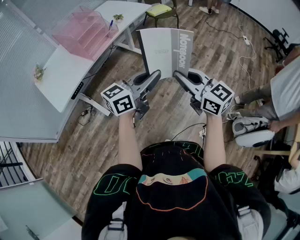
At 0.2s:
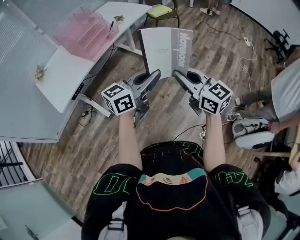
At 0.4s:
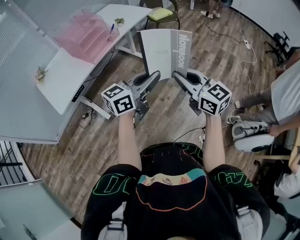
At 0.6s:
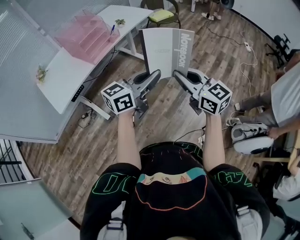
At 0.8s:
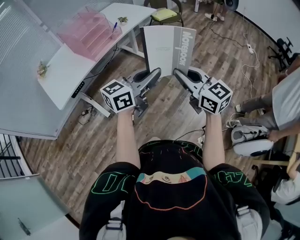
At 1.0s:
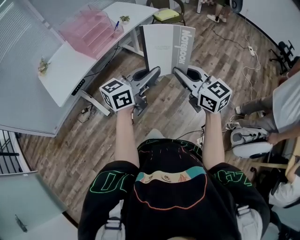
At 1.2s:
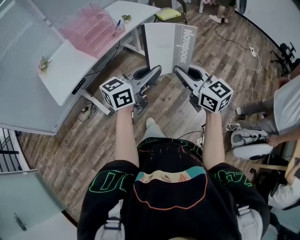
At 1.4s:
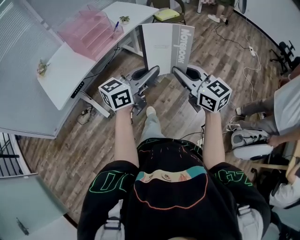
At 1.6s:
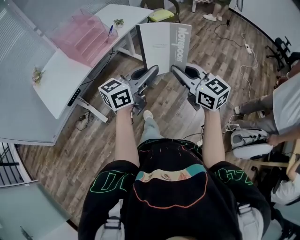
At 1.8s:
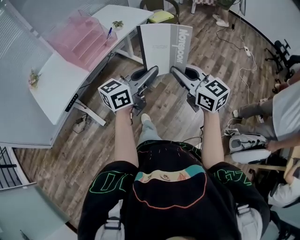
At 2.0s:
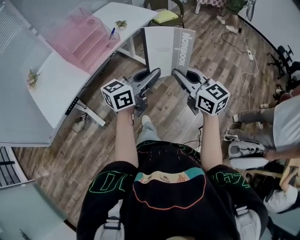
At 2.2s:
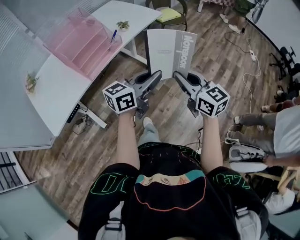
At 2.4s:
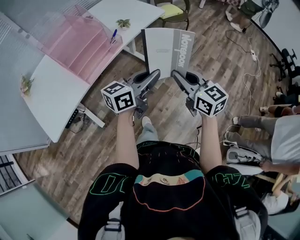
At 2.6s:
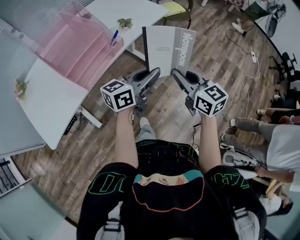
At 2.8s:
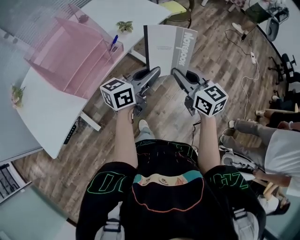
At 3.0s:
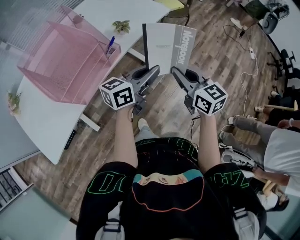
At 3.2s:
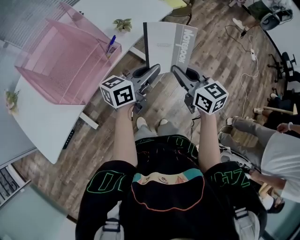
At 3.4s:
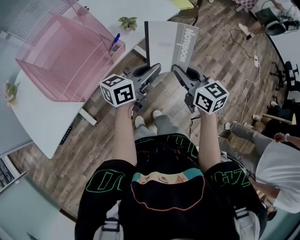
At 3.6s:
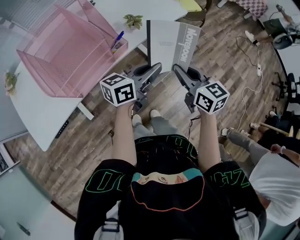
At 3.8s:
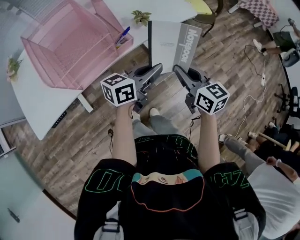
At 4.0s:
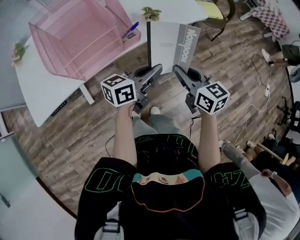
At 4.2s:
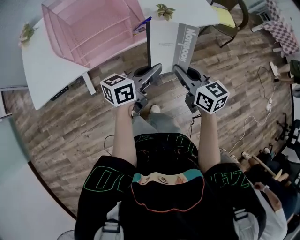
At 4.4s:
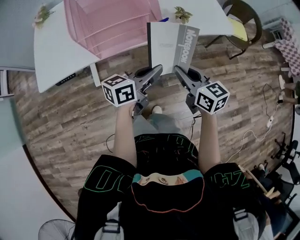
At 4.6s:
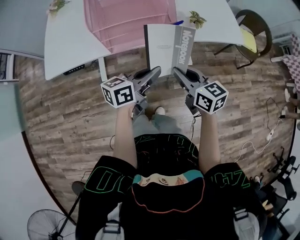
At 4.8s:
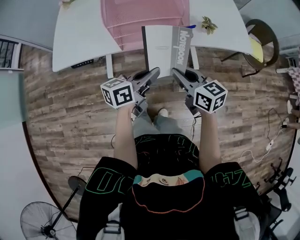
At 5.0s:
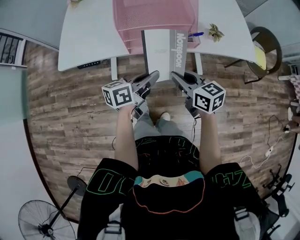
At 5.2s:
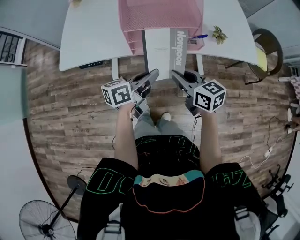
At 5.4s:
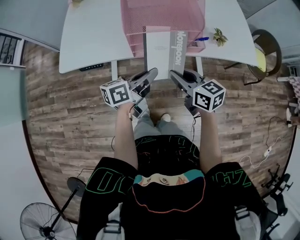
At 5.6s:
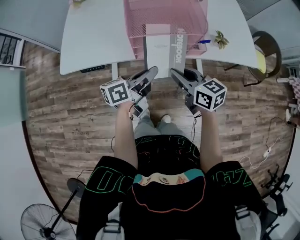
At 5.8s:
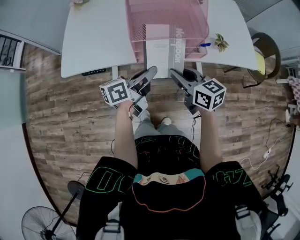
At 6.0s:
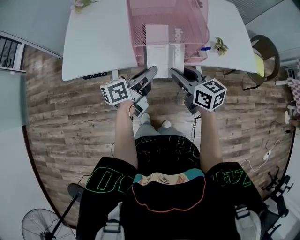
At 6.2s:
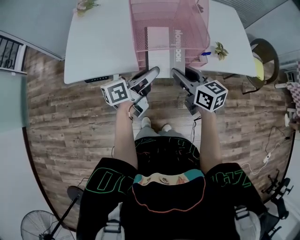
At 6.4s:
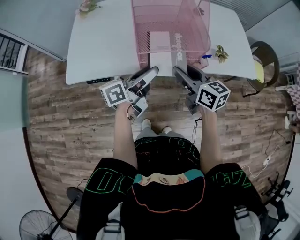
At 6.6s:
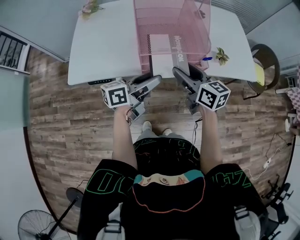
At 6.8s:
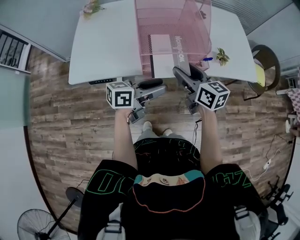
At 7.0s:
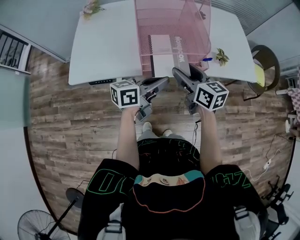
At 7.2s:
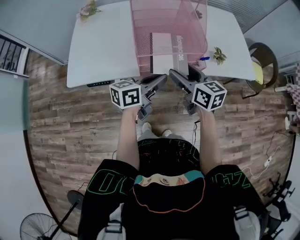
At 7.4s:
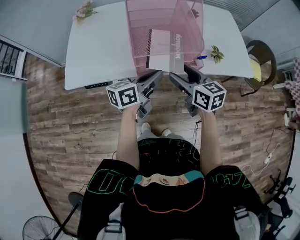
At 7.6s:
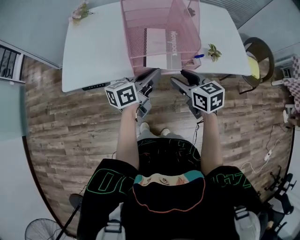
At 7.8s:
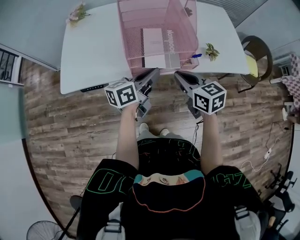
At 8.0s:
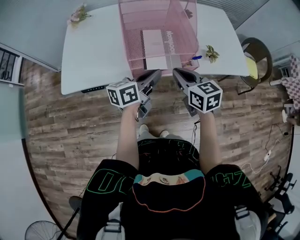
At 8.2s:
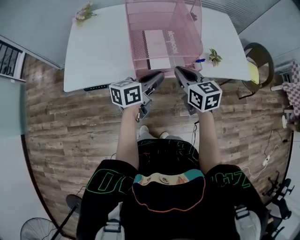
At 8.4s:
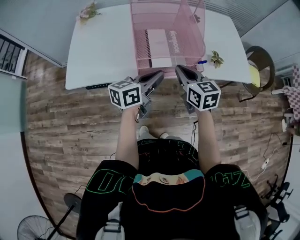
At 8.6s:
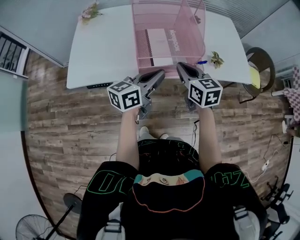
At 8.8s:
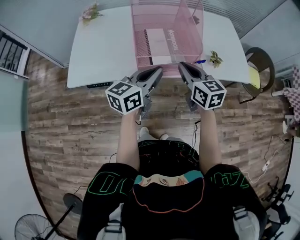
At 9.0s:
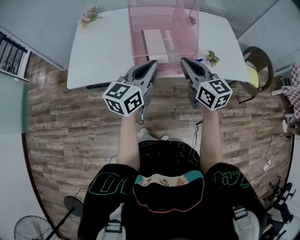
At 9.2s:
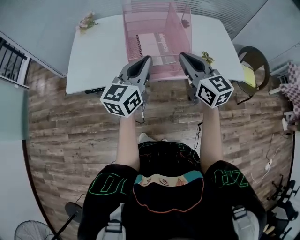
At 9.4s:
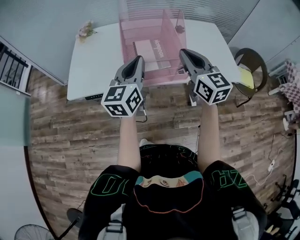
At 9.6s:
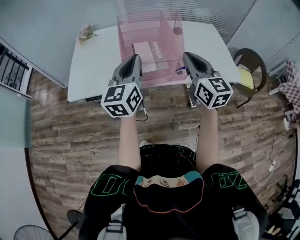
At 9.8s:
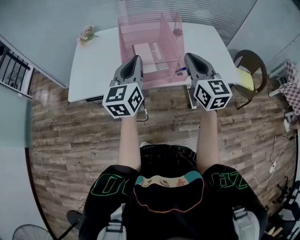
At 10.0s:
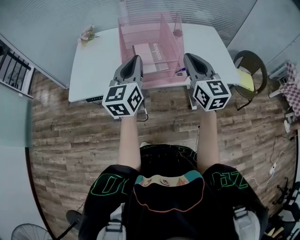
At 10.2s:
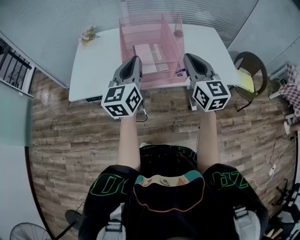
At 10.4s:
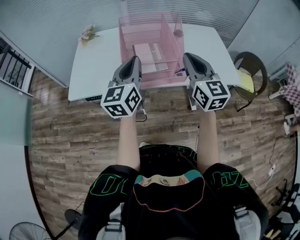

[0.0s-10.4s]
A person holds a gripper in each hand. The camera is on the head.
0.0s to 1.4s: The grippers make only small movements.
1.4s to 3.0s: Both grippers move forward, about 40 cm.
3.0s to 4.4s: The right gripper changes place by approximately 10 cm, and rotates approximately 40 degrees. The left gripper changes place by about 10 cm, and swivels approximately 40 degrees.
4.4s to 6.0s: Both grippers travel together to the left and forward, some 20 cm. The left gripper turns by about 20 degrees.
6.0s to 7.4s: The right gripper opens its fingers. The left gripper opens and closes again.
7.4s to 9.0s: Both grippers travel together upward, some 10 cm. The right gripper closes; the left gripper rotates approximately 30 degrees.
9.0s to 10.4s: The left gripper is displaced upward by about 5 cm, and rotates approximately 20 degrees, while the right gripper moves upward and to the right, roughly 10 cm.

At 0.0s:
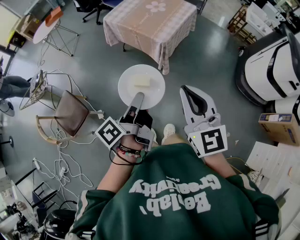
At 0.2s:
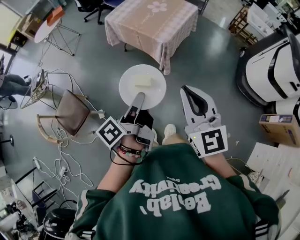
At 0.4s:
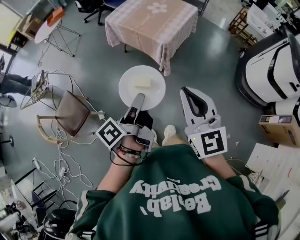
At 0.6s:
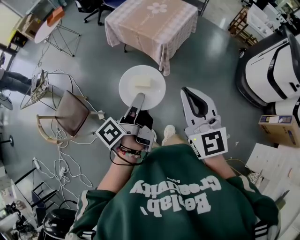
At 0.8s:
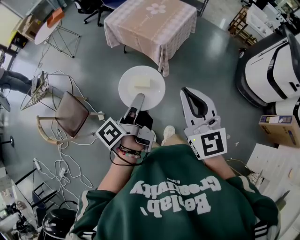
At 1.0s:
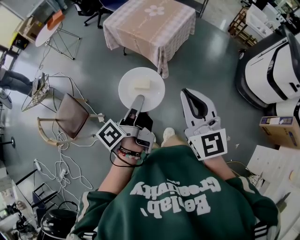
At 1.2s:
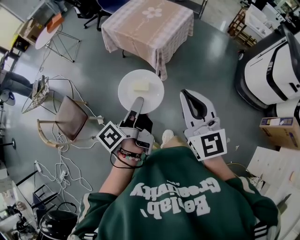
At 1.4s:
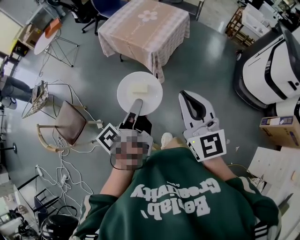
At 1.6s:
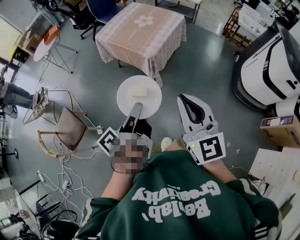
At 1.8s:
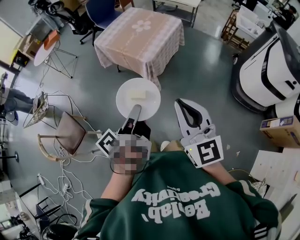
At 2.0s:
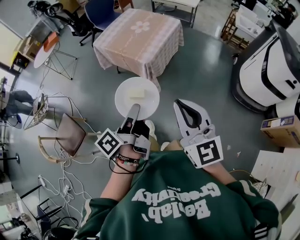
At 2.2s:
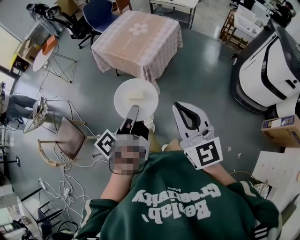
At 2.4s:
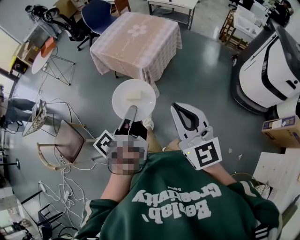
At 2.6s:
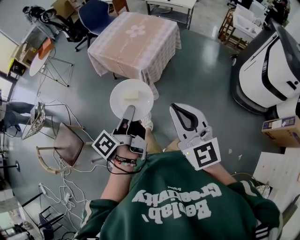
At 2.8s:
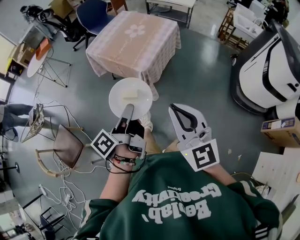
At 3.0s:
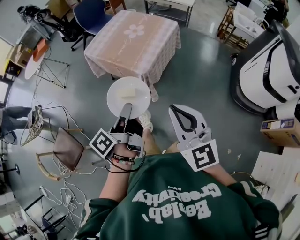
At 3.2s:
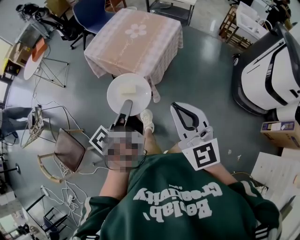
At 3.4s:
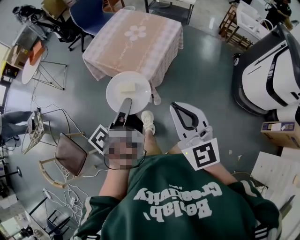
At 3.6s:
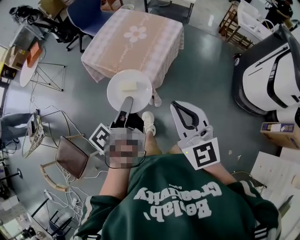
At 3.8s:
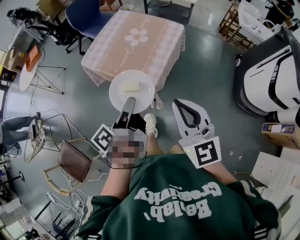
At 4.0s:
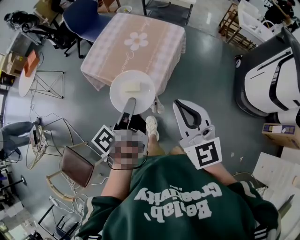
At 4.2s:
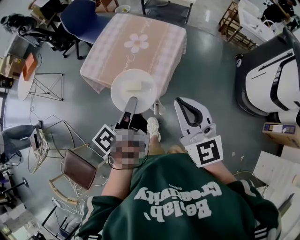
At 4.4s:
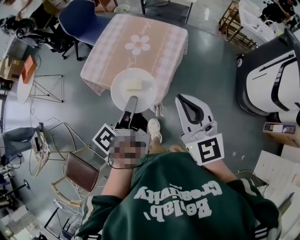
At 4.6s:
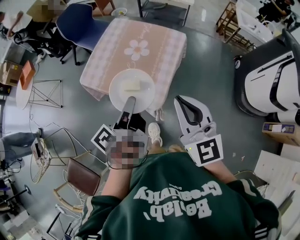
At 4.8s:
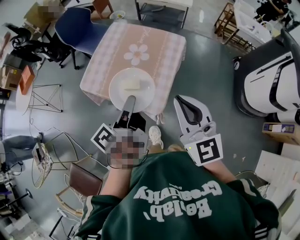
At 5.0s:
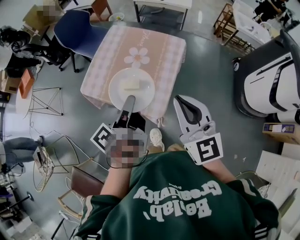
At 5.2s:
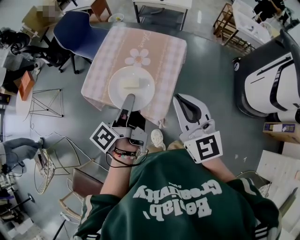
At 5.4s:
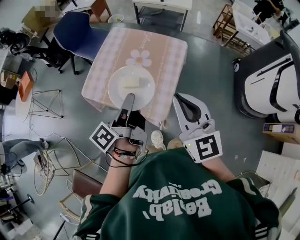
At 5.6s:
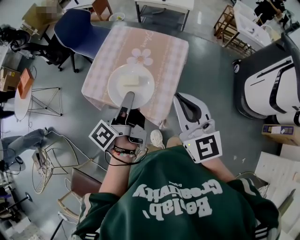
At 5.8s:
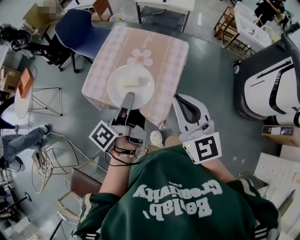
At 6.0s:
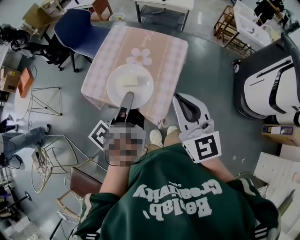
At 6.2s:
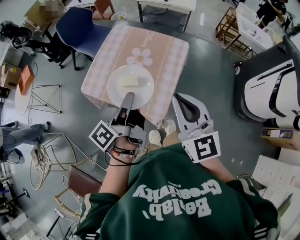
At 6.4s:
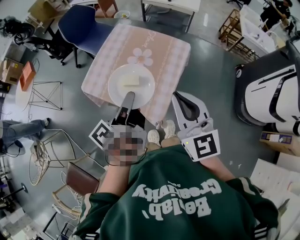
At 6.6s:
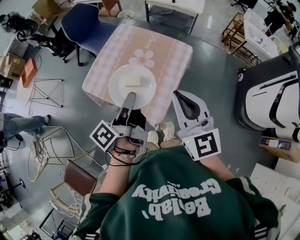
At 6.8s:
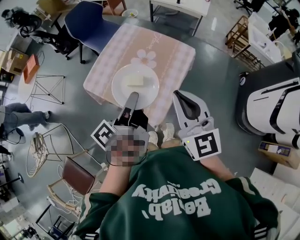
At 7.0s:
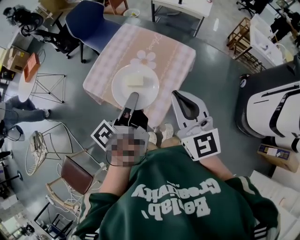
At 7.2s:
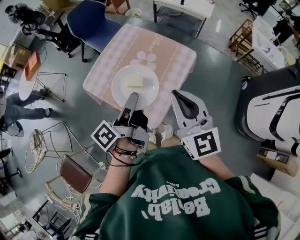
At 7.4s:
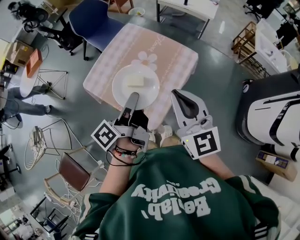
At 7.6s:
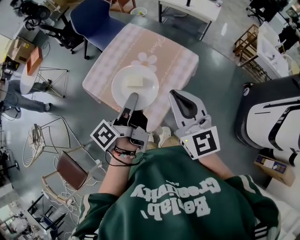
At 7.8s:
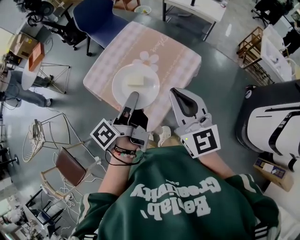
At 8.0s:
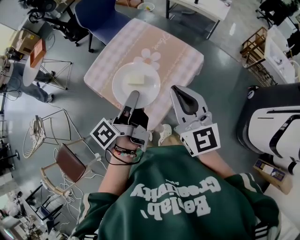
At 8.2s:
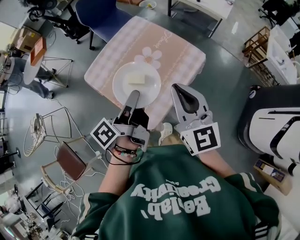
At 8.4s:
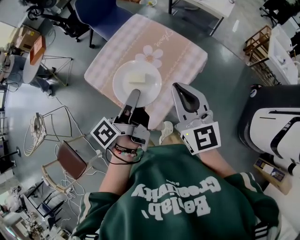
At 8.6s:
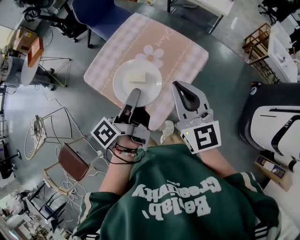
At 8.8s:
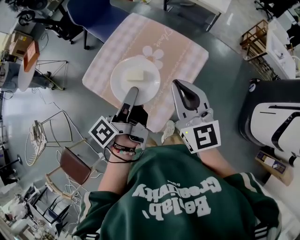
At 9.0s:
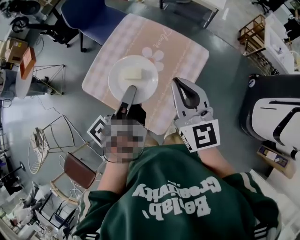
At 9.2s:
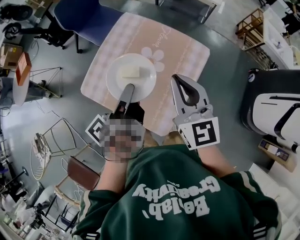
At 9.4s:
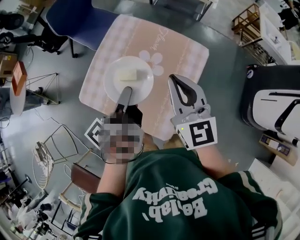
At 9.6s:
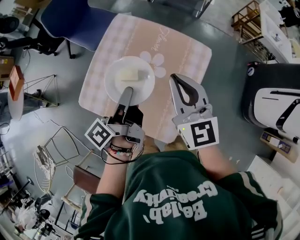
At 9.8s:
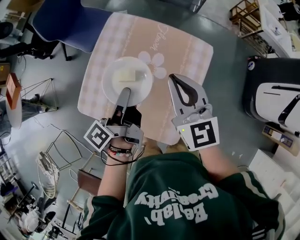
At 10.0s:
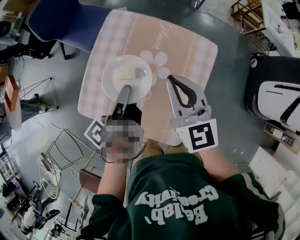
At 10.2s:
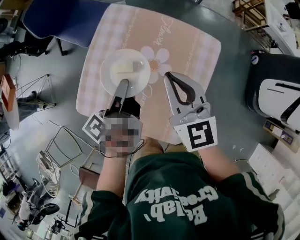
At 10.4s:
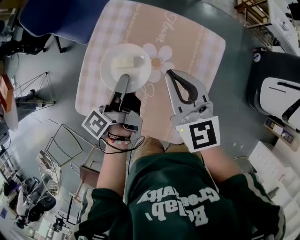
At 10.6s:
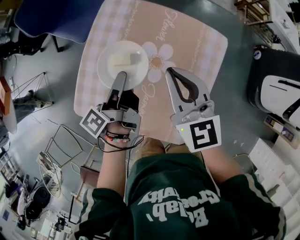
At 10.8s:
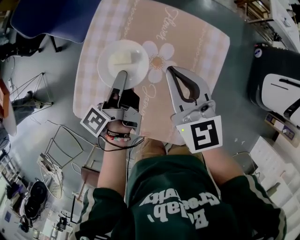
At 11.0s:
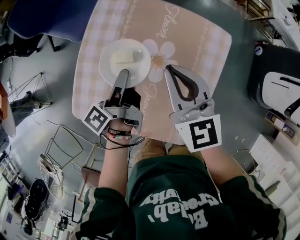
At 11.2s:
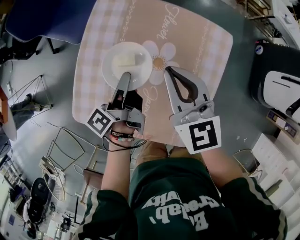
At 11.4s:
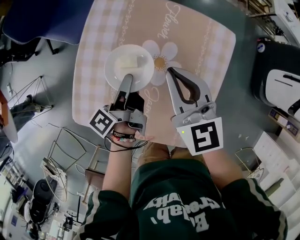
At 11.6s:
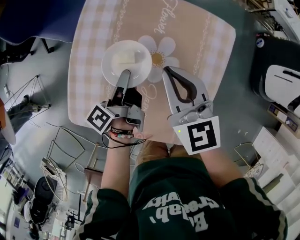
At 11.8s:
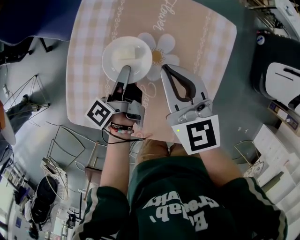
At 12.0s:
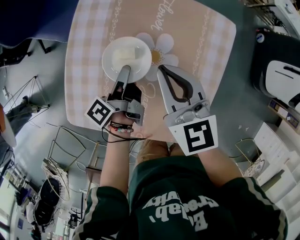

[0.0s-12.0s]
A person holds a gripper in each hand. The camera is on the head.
0.0s to 1.6s: The right gripper changes place by approximately 10 cm.
1.6s to 3.0s: The right gripper ends up about 10 cm from where it was.
3.0s to 4.4s: The right gripper shifts by some 30 cm.
4.4s to 6.0s: The right gripper moves roughly 10 cm.
6.0s to 7.6s: The right gripper shifts by about 10 cm.
7.6s to 9.0s: The right gripper shifts by approximately 10 cm.
9.0s to 10.4s: The right gripper ends up roughly 20 cm from where it was.
10.4s to 12.0s: The right gripper shifts some 10 cm downward.

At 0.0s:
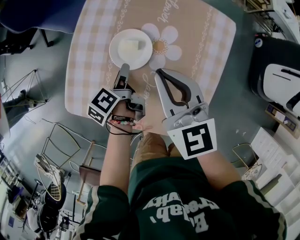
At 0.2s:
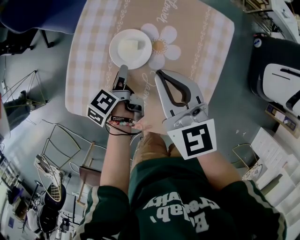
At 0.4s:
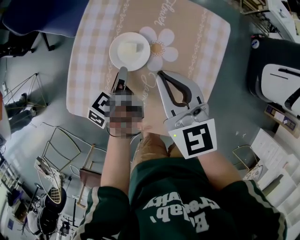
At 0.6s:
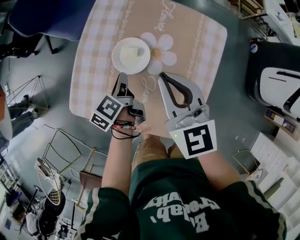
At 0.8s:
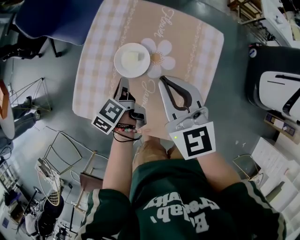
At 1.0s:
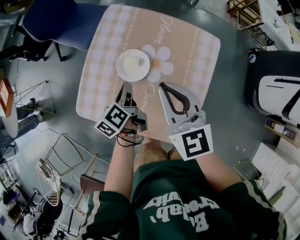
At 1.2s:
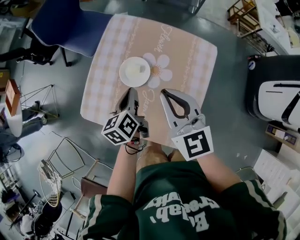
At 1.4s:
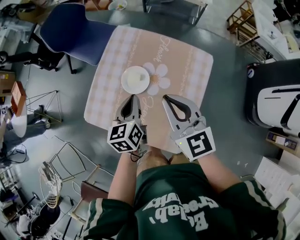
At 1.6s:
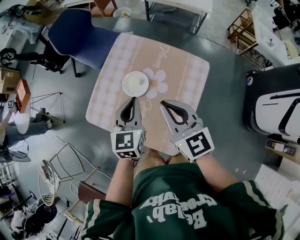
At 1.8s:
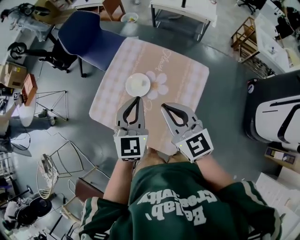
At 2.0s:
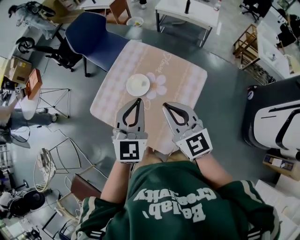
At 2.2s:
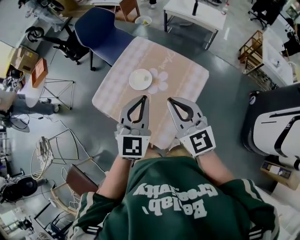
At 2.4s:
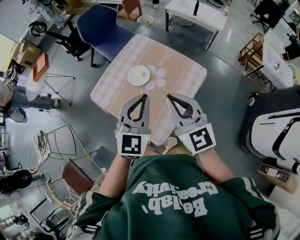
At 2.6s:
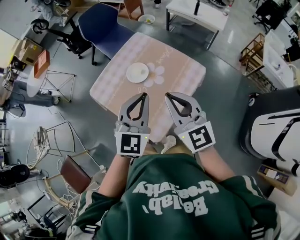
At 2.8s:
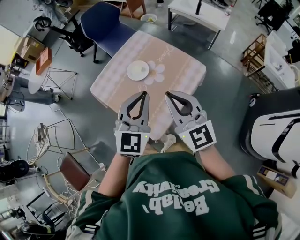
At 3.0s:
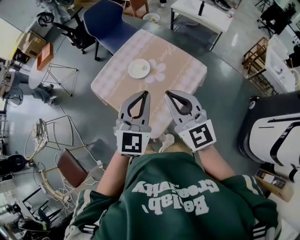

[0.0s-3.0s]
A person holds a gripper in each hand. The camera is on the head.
0.0s to 1.6s: The right gripper goes about 15 cm upward.
1.6s to 3.0s: The right gripper changes place by approximately 15 cm, and turns by approximately 20 degrees.
